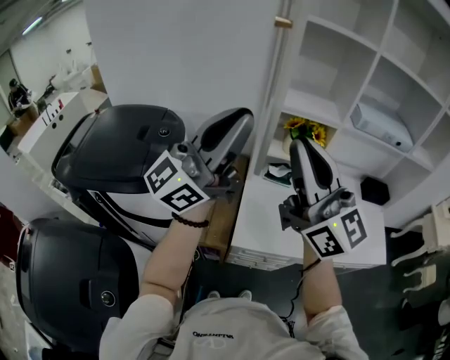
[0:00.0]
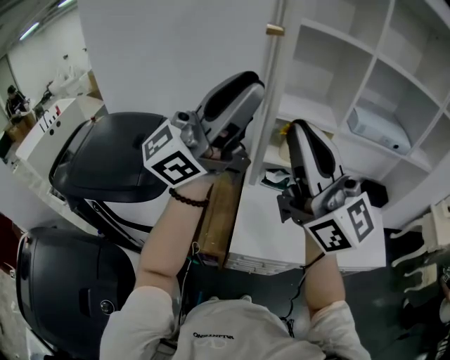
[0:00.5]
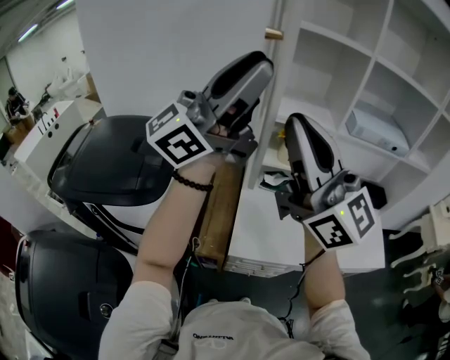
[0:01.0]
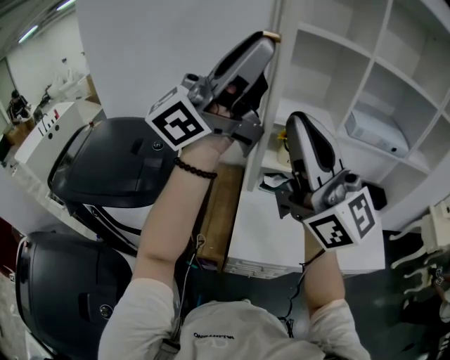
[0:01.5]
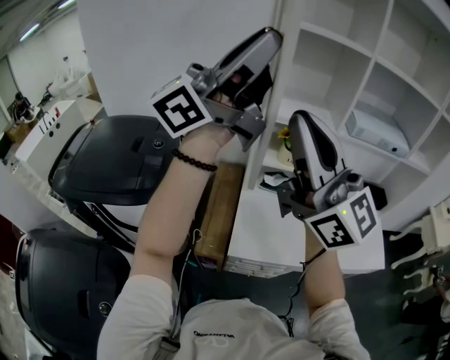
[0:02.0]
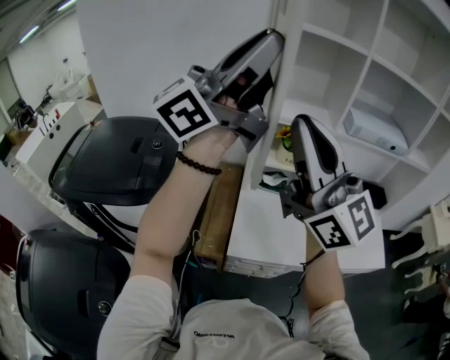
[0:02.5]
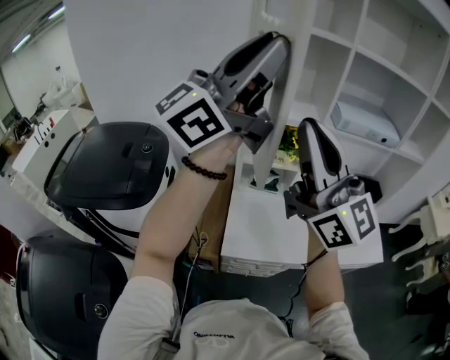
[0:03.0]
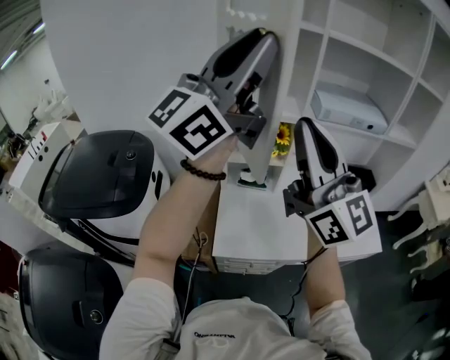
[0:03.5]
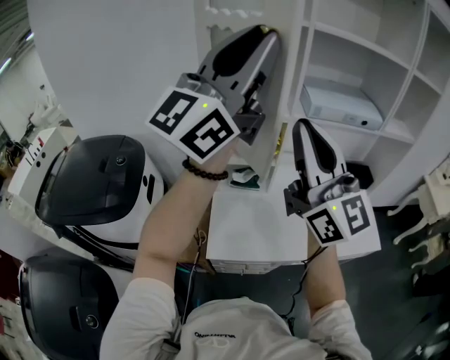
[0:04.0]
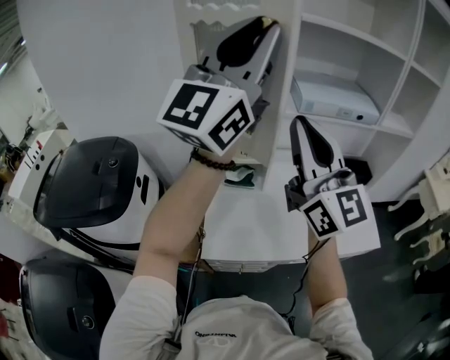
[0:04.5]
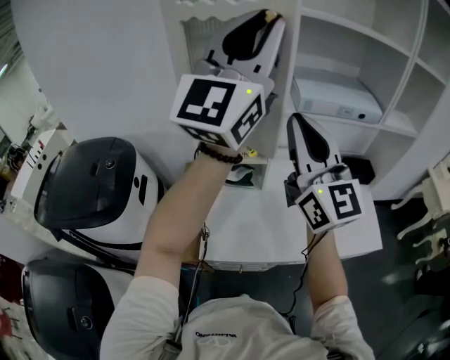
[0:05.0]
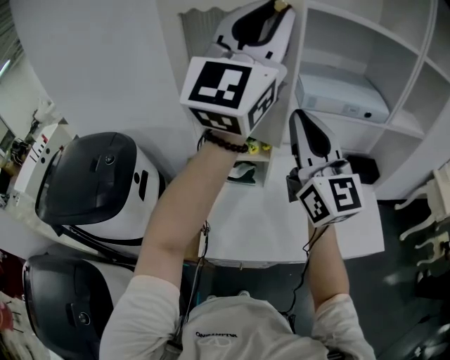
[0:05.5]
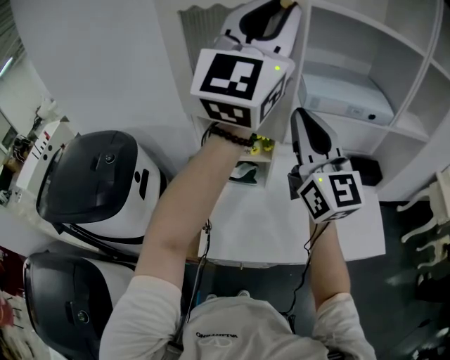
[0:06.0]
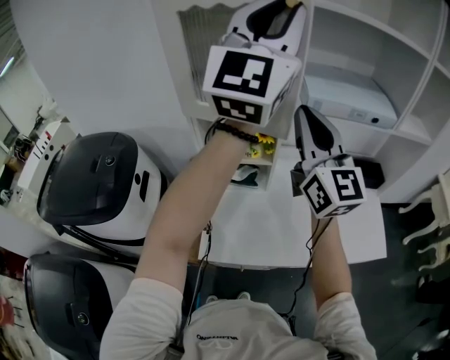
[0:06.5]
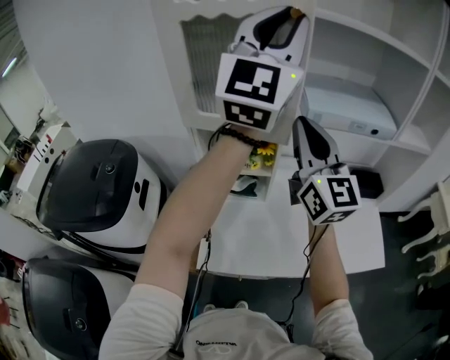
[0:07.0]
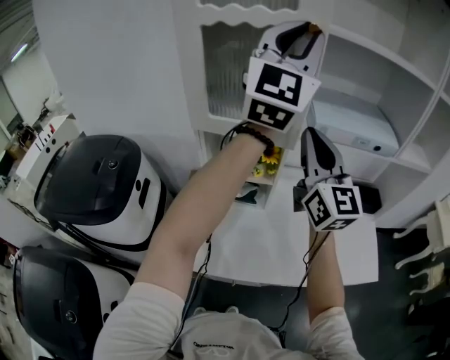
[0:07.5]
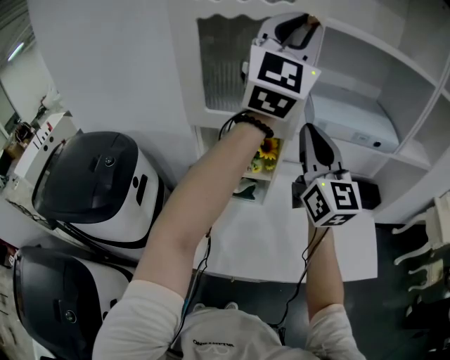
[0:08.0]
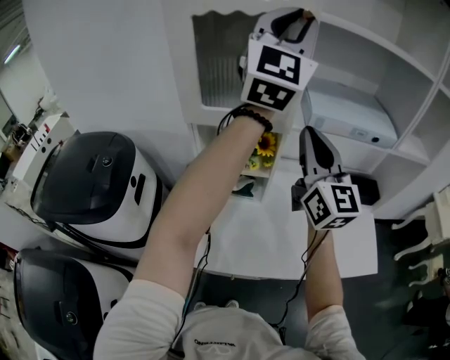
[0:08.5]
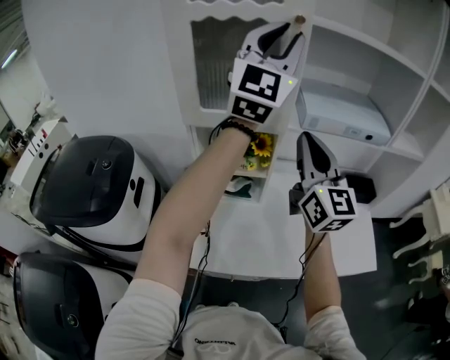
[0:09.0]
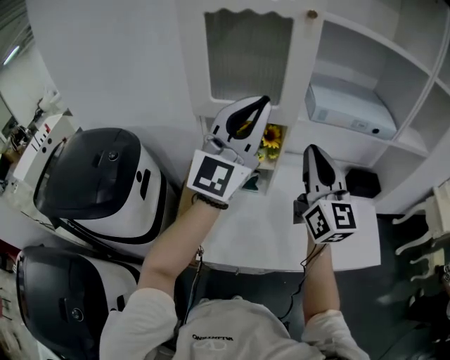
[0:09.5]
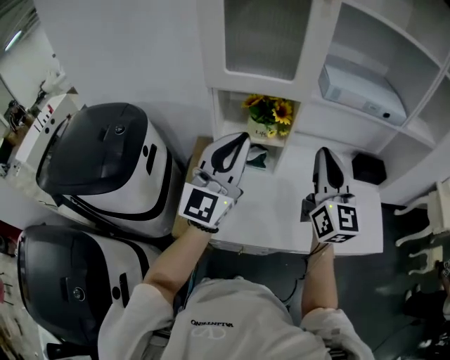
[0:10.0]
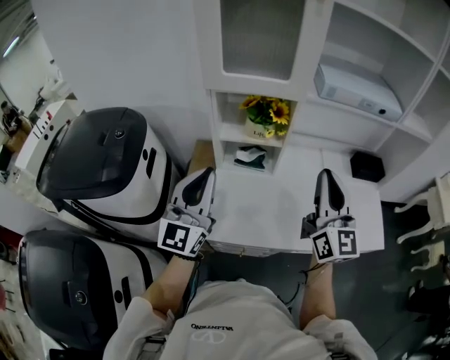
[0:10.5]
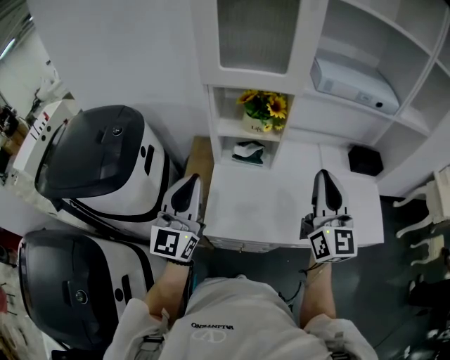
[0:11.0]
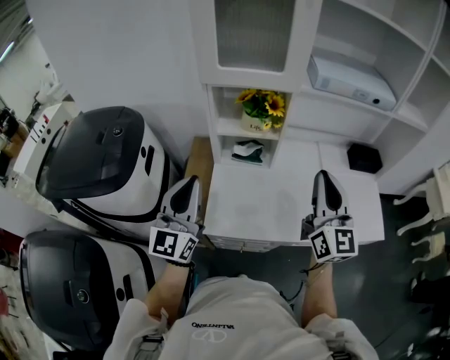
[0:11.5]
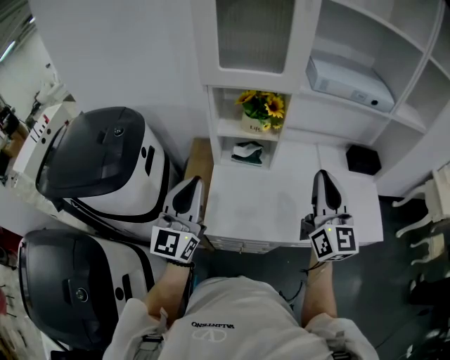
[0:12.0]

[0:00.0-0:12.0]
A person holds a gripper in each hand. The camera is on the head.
0:00.0 to 0:02.0: The left gripper is displaced upward by about 15 cm, turns by roughly 20 degrees, and opens its fingers. The right gripper shifts roughly 5 cm upward.
0:02.0 to 0:04.0: The right gripper is displaced to the right and forward by approximately 20 cm. The left gripper goes roughly 15 cm to the right, and swivels some 30 degrees.
0:04.0 to 0:06.0: The left gripper goes roughly 15 cm forward and to the right, and rotates some 30 degrees. The right gripper is displaced forward and downward by about 15 cm.
0:06.0 to 0:08.0: The grippers both shift forward by some 5 cm.
0:08.0 to 0:10.0: The right gripper is displaced downward and backward by roughly 15 cm, while the left gripper is displaced downward, backward and to the left by about 35 cm.
0:10.0 to 0:12.0: The left gripper travels backward, to the left and downward by roughly 15 cm. Meanwhile the right gripper shifts some 10 cm backward.

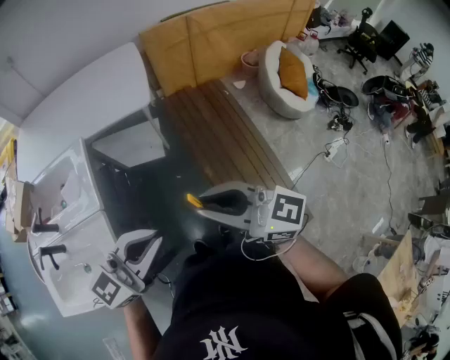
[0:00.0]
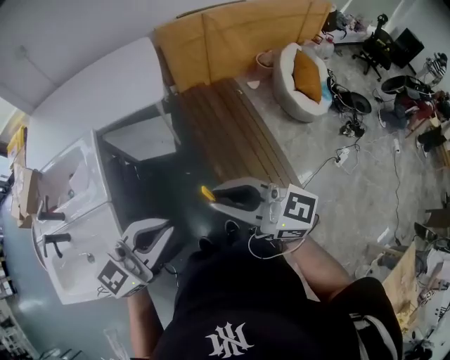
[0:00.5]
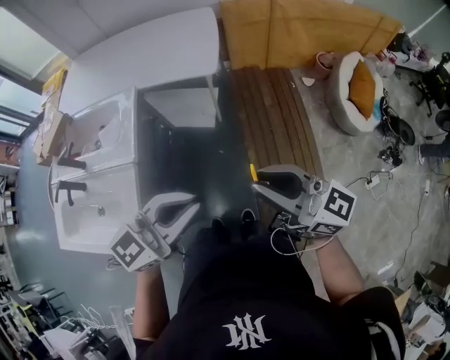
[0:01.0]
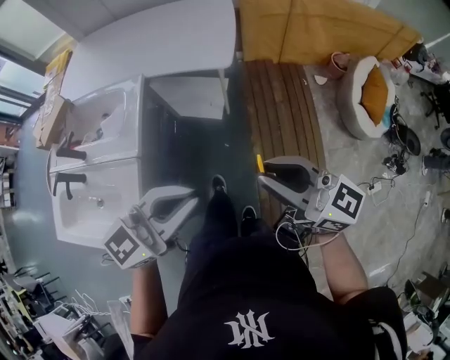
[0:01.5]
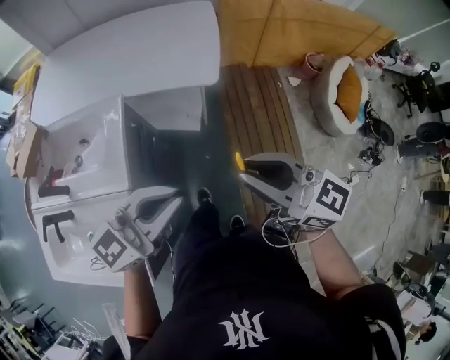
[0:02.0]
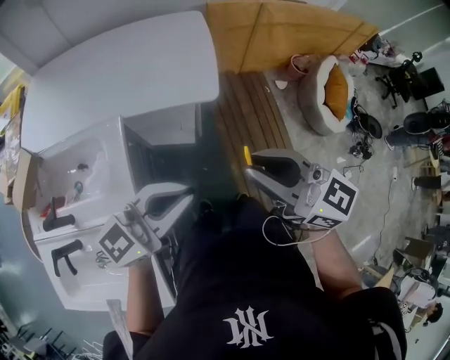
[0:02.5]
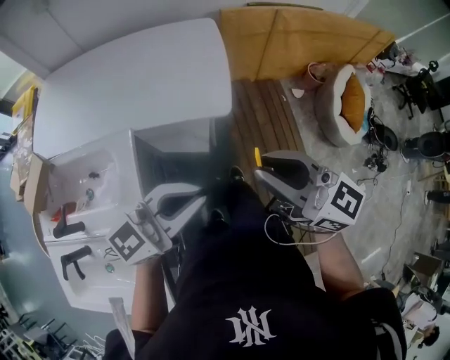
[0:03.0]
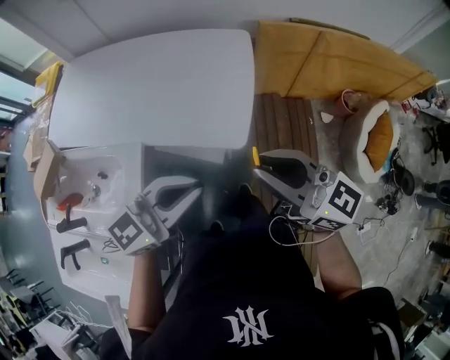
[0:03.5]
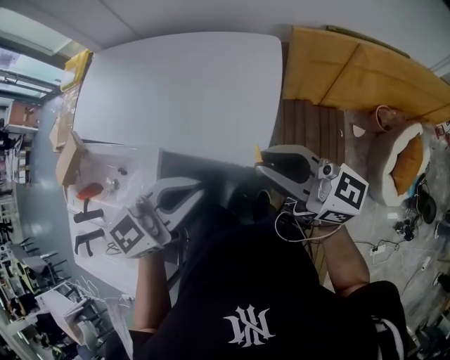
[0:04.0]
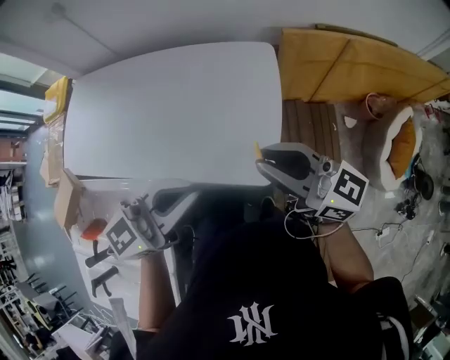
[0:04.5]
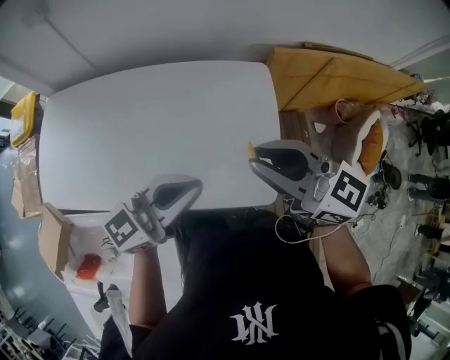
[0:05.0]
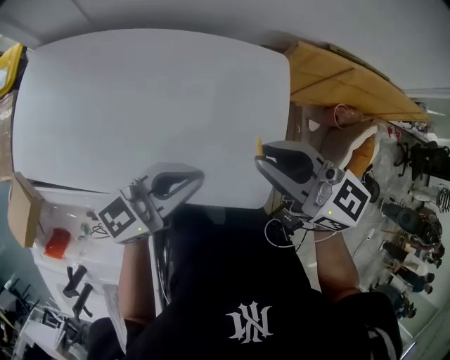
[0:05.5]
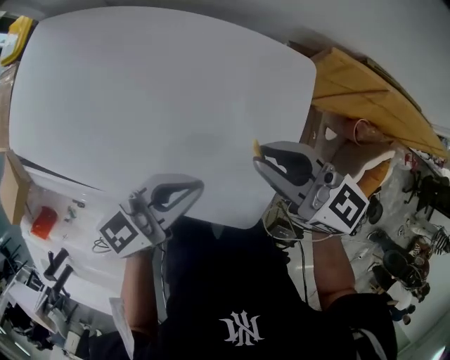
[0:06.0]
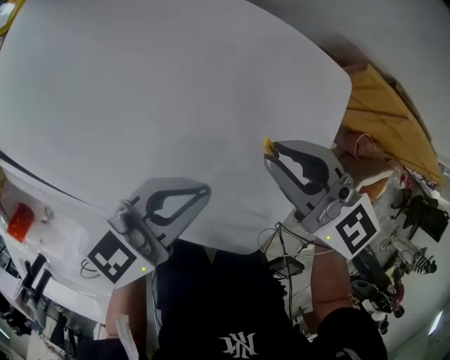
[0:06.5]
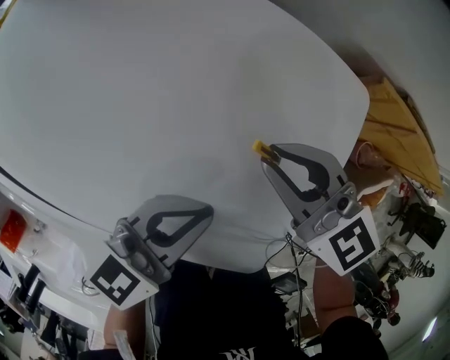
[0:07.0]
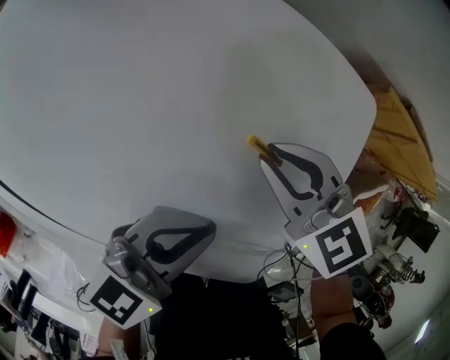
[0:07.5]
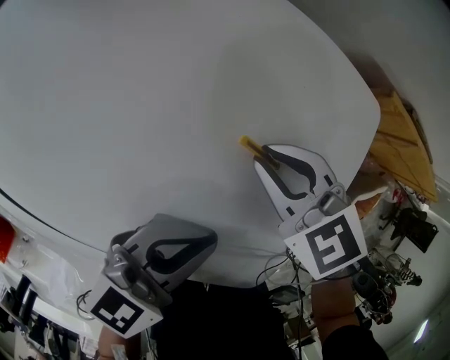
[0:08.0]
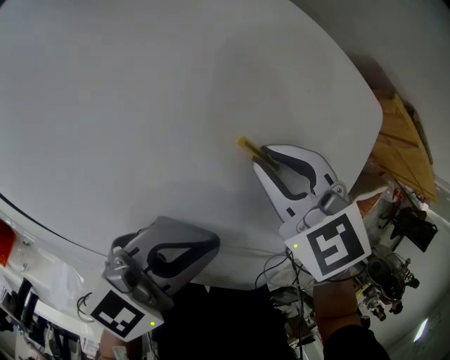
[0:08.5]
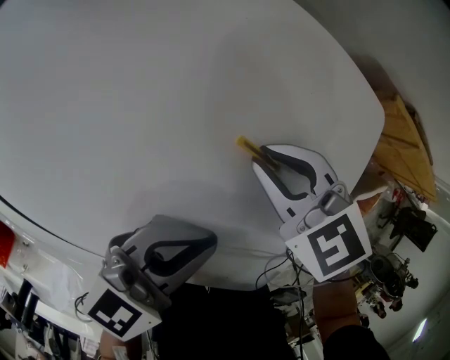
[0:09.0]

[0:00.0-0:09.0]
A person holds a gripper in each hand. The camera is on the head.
0:00.0 to 0:02.0: The right gripper heads forward, covering roughly 20 cm, while the left gripper travels forward and to the left by about 20 cm.
0:02.0 to 0:04.5: Both grippers are carried forward, about 40 cm.
0:04.5 to 0:07.0: The left gripper goes approximately 35 cm downward and forward, and turns by about 20 degrees. The right gripper travels downward, forward and to the left by some 40 cm, and tilts its fingers approximately 30 degrees downward.
0:07.0 to 0:09.0: The right gripper moves downward, about 10 cm, and swivels about 20 degrees.

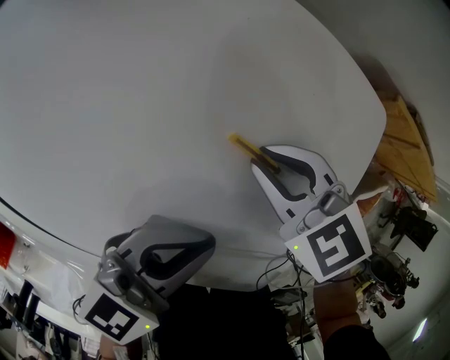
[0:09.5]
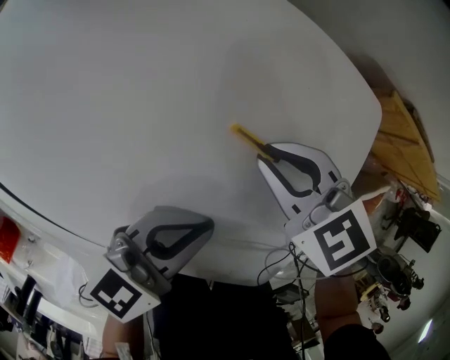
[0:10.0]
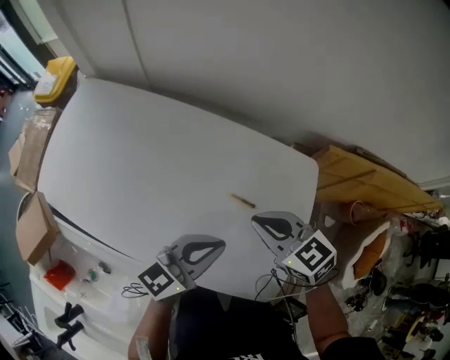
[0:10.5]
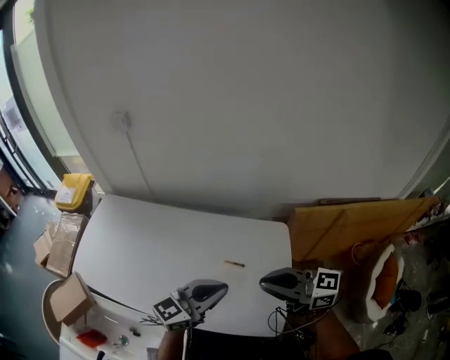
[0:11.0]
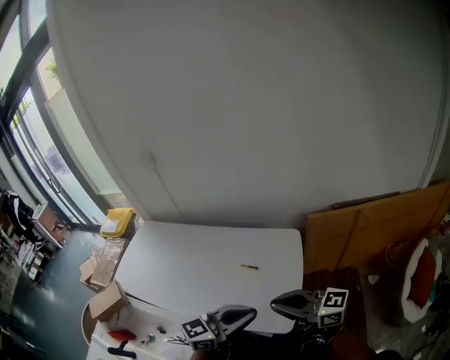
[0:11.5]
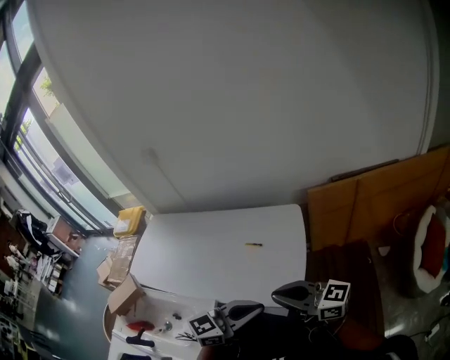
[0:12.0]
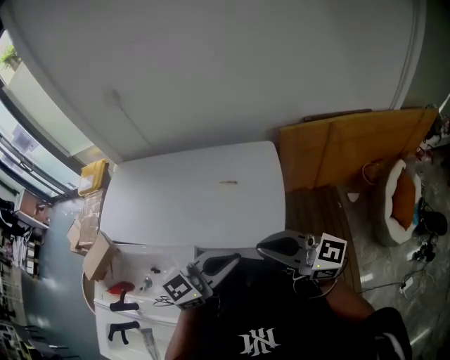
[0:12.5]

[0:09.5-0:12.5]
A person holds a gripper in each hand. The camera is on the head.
0:09.5 to 0:11.0: The two grippers go approximately 35 cm upward. The right gripper tilts its fingers about 50 degrees upward. The left gripper changes its angle by approximately 20 degrees.
0:11.0 to 0:12.5: The right gripper changes place by some 25 cm, while the left gripper moves roughly 30 cm.

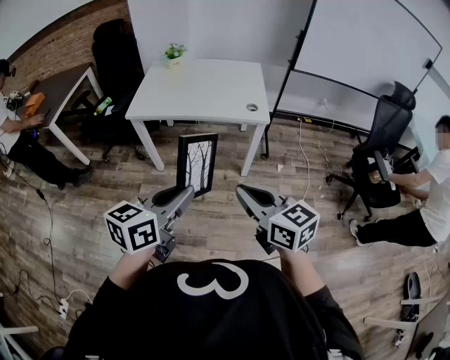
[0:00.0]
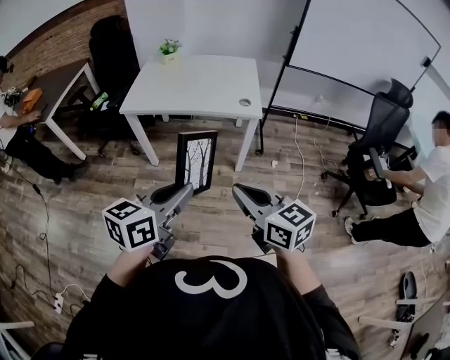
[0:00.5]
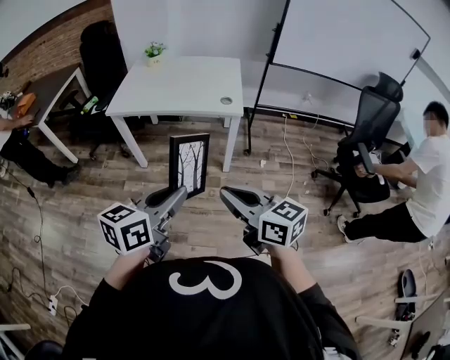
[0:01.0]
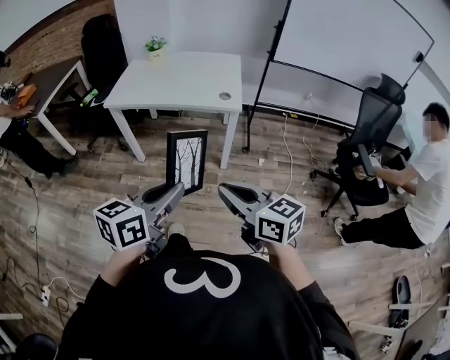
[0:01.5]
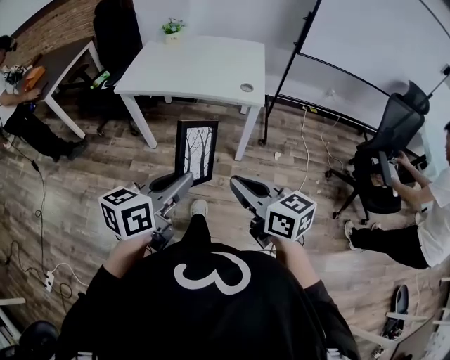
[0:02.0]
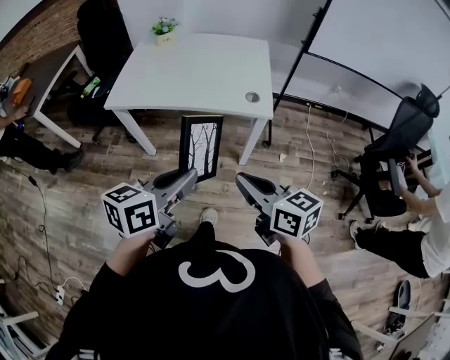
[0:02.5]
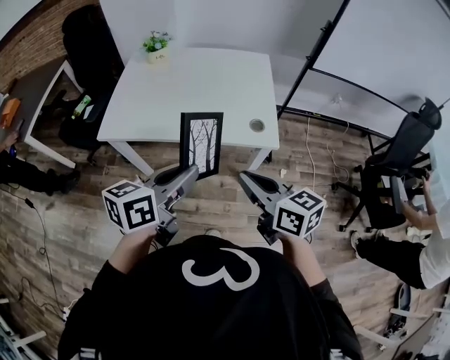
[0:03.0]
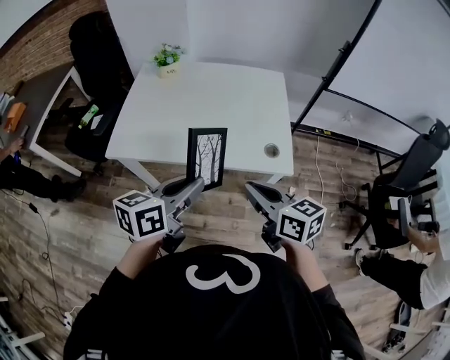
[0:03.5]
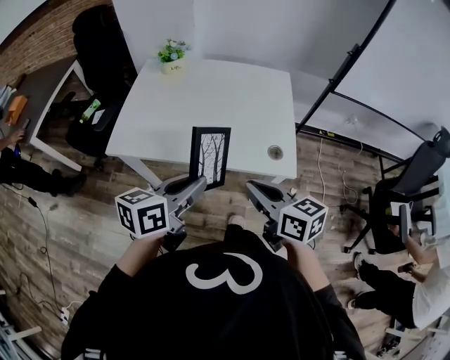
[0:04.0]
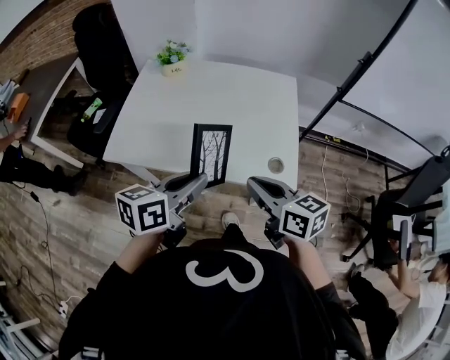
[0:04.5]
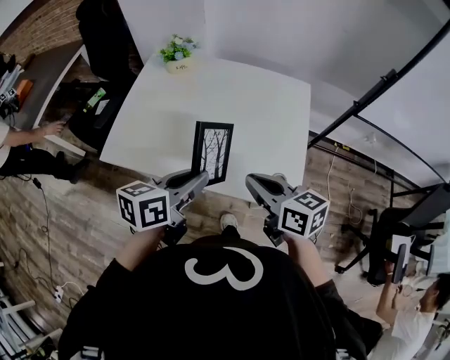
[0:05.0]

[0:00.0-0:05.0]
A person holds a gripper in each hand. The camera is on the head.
0:00.0 to 0:02.5: The left gripper shifts some 15 cm forward and to the right; the right gripper is displaced forward and downward by roughly 15 cm.
0:02.5 to 0:05.0: Both grippers move forward, about 35 cm.
